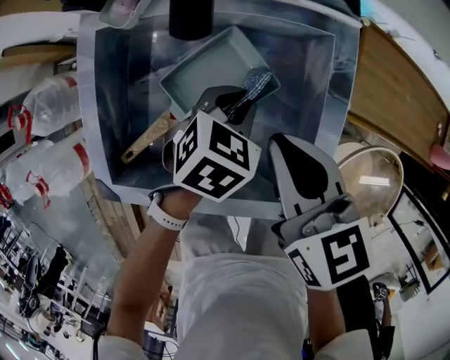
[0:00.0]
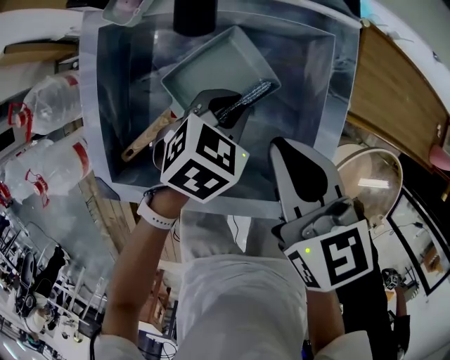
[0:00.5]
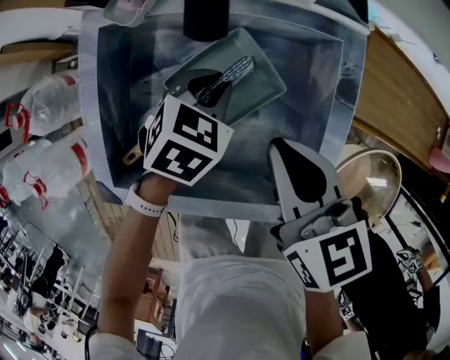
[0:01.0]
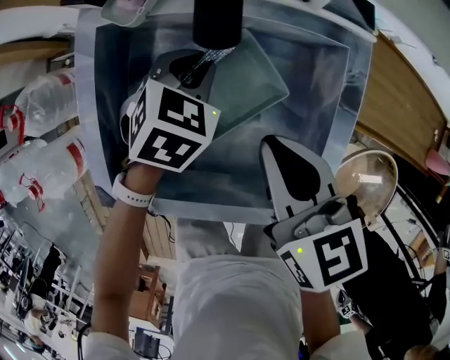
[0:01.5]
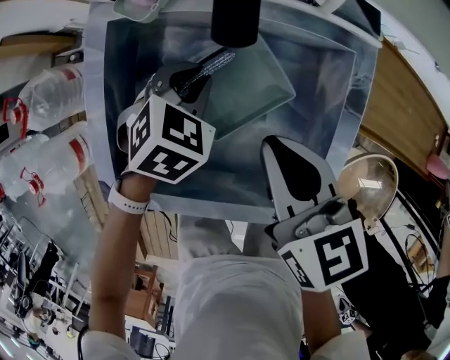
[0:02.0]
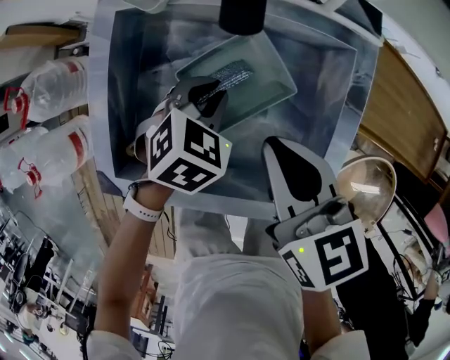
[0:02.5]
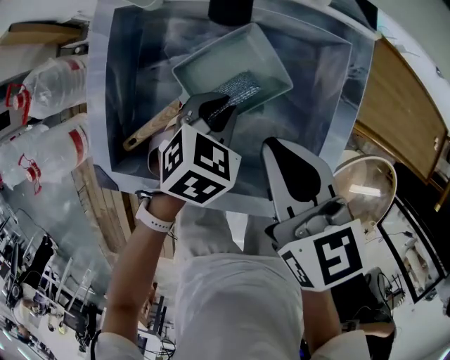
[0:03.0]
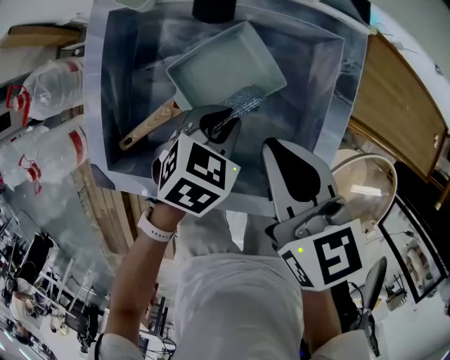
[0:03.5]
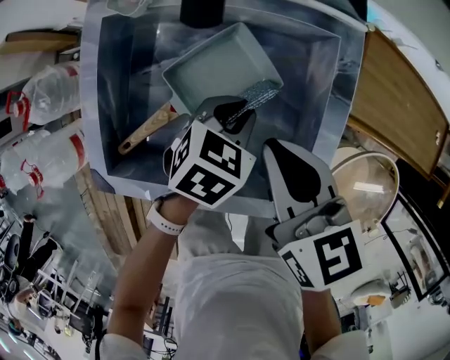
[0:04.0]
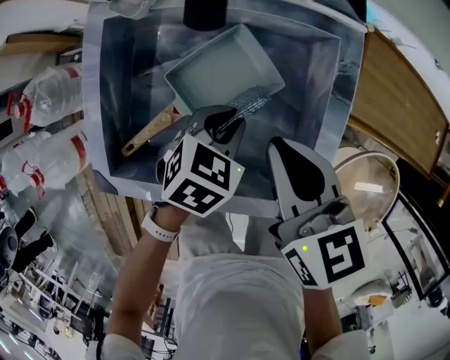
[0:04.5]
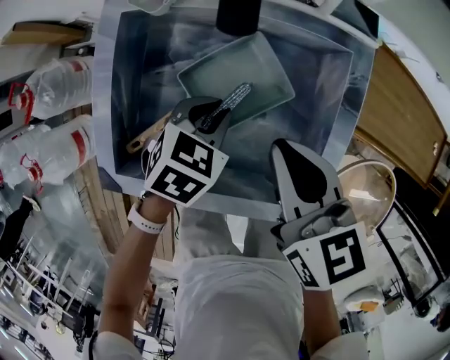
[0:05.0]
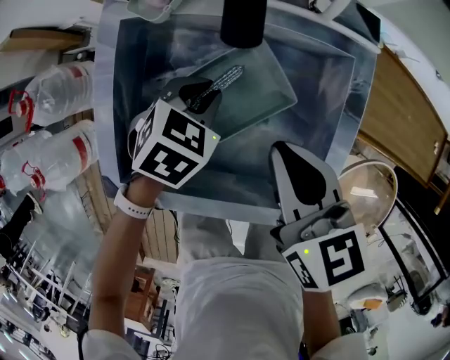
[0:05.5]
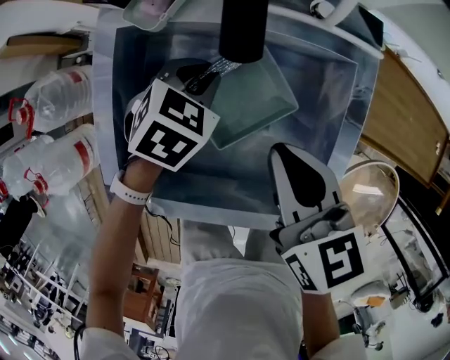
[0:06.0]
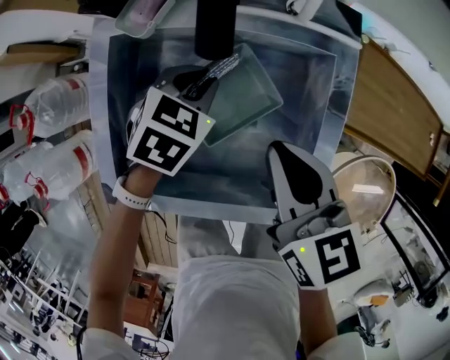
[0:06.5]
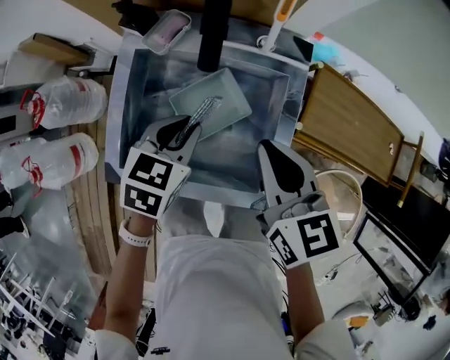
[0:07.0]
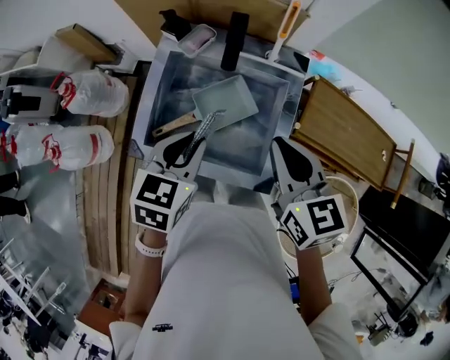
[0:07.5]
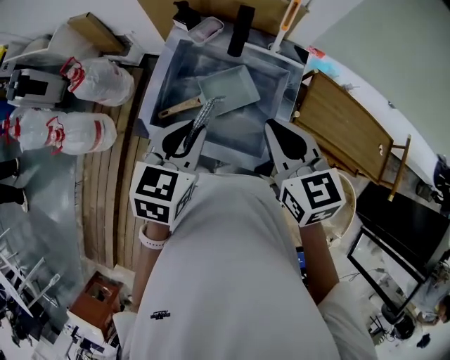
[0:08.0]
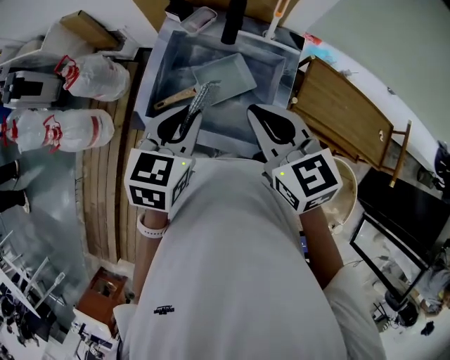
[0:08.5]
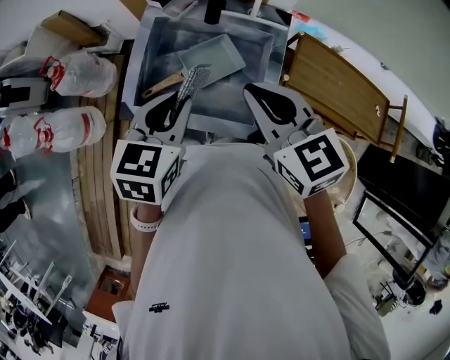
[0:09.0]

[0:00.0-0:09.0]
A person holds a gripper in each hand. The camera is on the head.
0:00.0 to 0:02.0: The left gripper heads to the left, covering about 10 cm.
0:02.0 to 0:04.5: The left gripper travels to the right and backward by approximately 15 cm.
0:04.5 to 0:07.0: The left gripper is displaced upward and to the left by approximately 15 cm, while the right gripper shifts about 10 cm upward.
0:07.0 to 0:09.0: The grippers both shift upward and backward by roughly 20 cm. The right gripper swivels roughly 20 degrees.

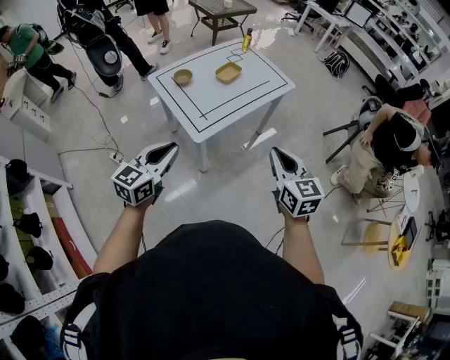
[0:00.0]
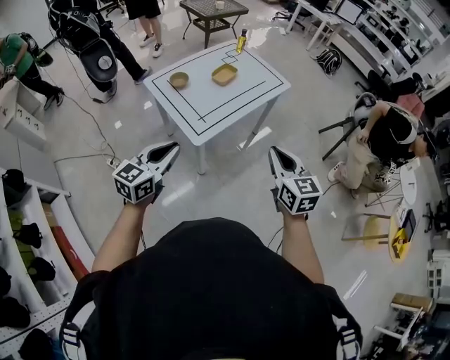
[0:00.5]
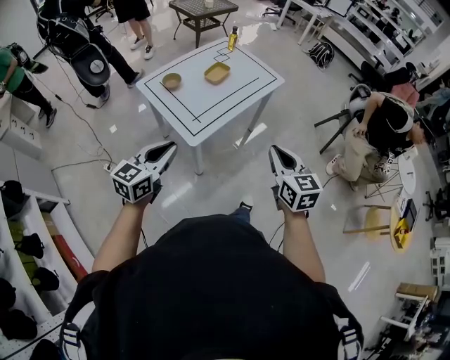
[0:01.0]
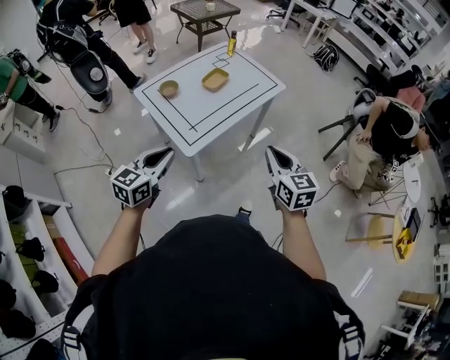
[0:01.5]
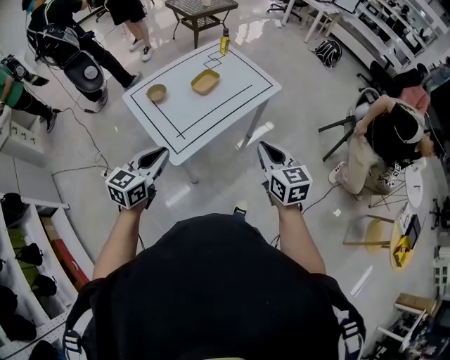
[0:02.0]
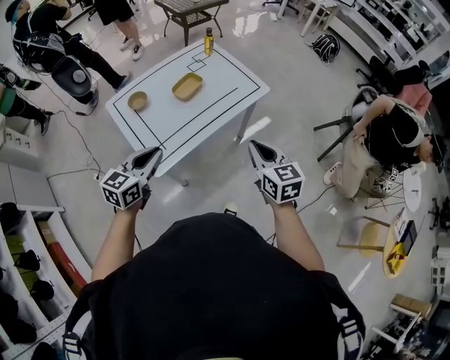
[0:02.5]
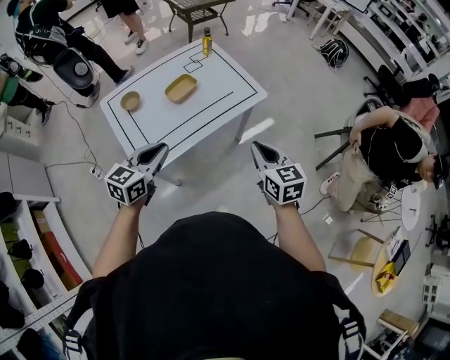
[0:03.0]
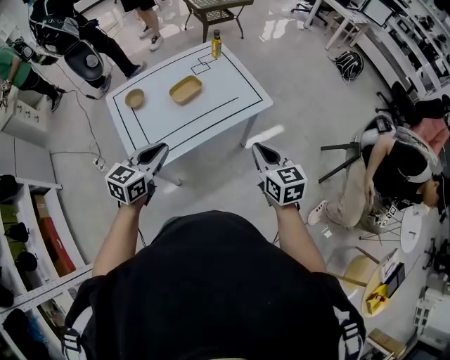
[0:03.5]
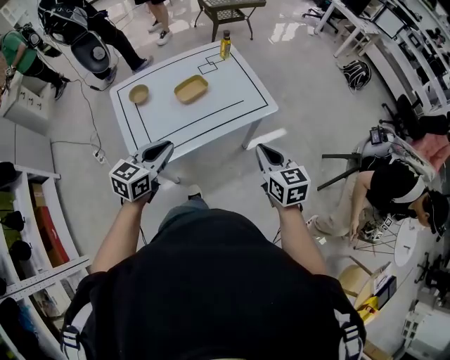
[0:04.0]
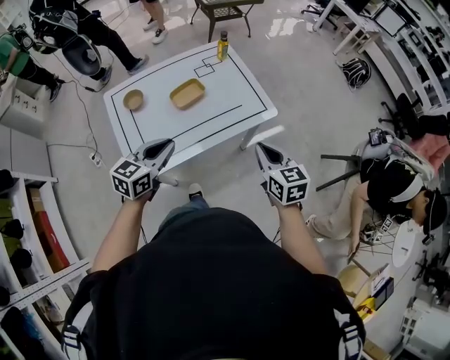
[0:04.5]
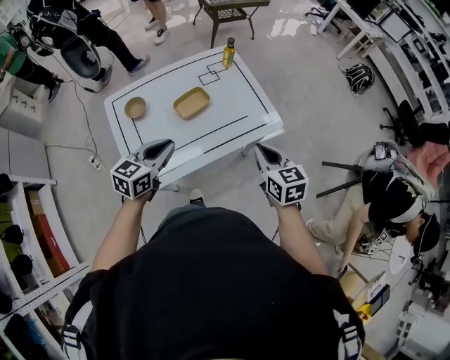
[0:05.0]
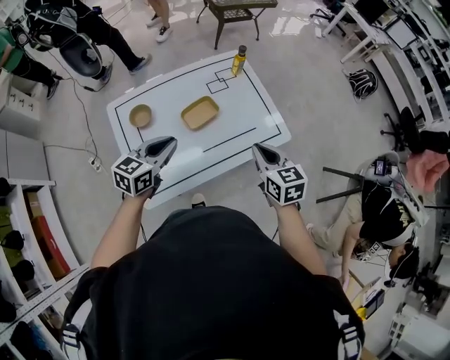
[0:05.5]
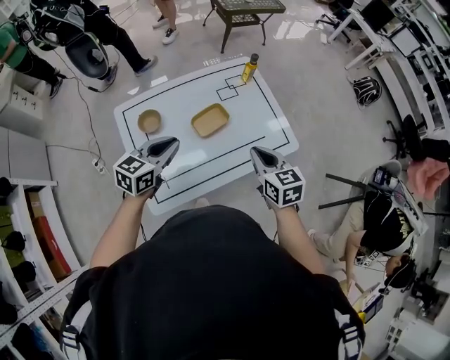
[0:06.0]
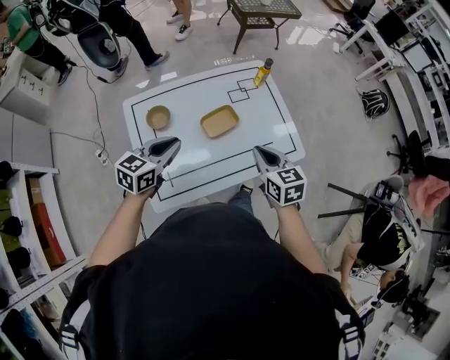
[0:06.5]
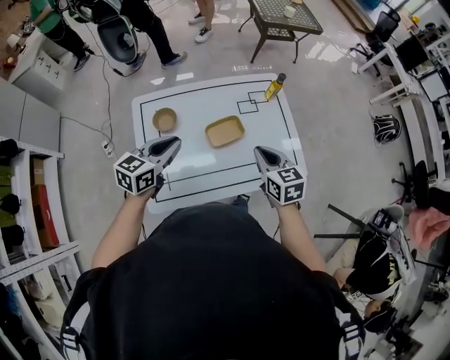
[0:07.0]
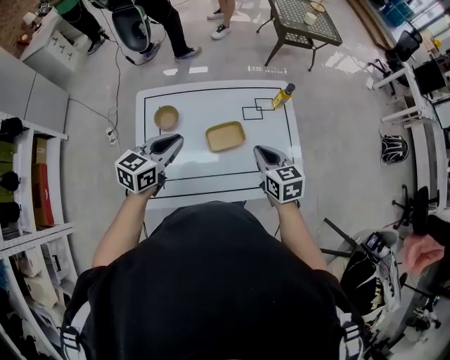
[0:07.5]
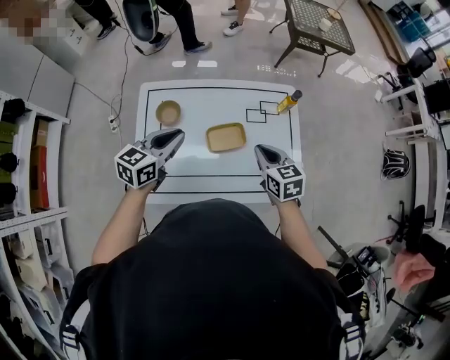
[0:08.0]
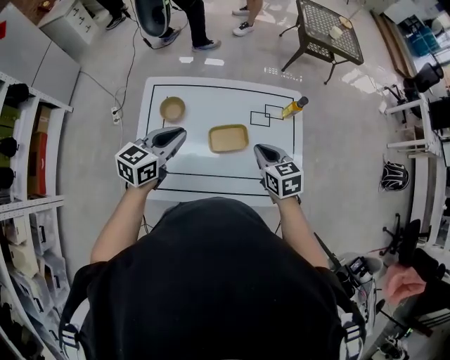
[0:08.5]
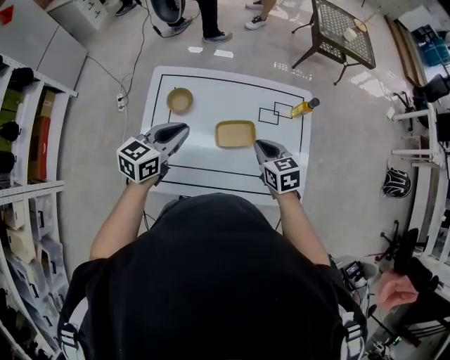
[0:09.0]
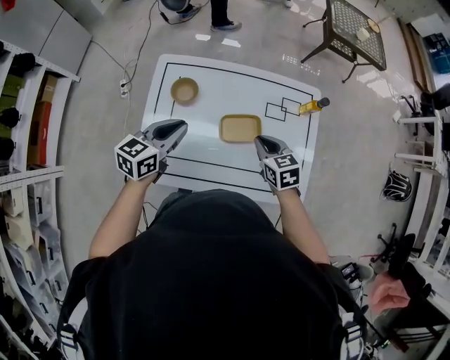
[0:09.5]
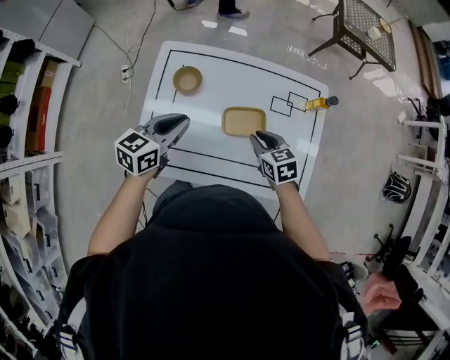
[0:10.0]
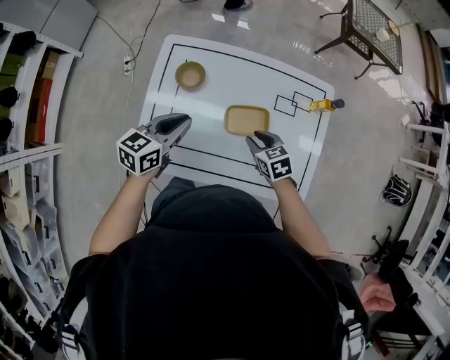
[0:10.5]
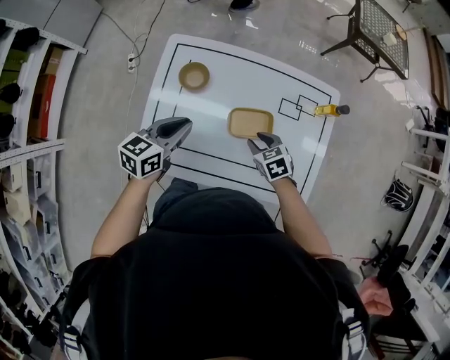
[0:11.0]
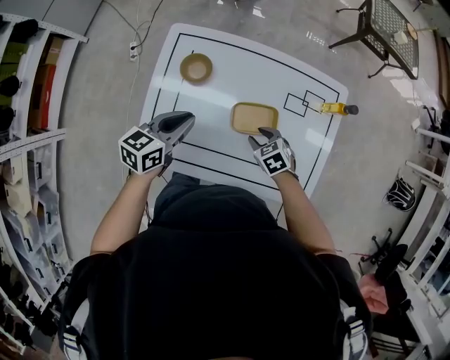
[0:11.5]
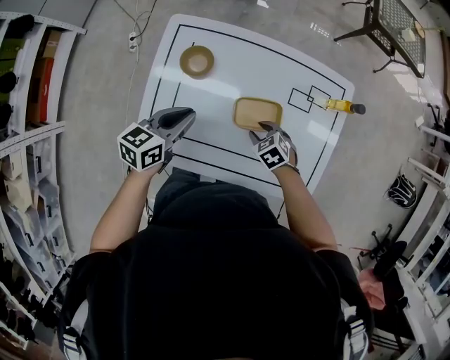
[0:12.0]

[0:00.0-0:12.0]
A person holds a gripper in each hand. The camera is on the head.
0:00.0 to 0:02.0: Both grippers move forward, approximately 15 cm.
0:02.0 to 0:04.0: The left gripper heads to the right and forward, covering roughly 25 cm. Meanwhile the right gripper travels forward and to the right by some 25 cm.
0:04.0 to 0:06.0: The two grippers go approximately 25 cm forward and to the left.
0:06.0 to 0:08.0: The left gripper is displaced forward by some 5 cm, and swivels some 20 degrees. The right gripper shifts some 15 cm forward, and changes its angle by about 20 degrees.
0:08.0 to 0:10.0: The left gripper is displaced downward by approximately 5 cm. Meanwhile the right gripper travels downward and to the left by approximately 10 cm.
0:10.0 to 0:12.0: The right gripper moves downward, approximately 15 cm, and swivels approximately 30 degrees, while the left gripper shifts approximately 5 cm downward.

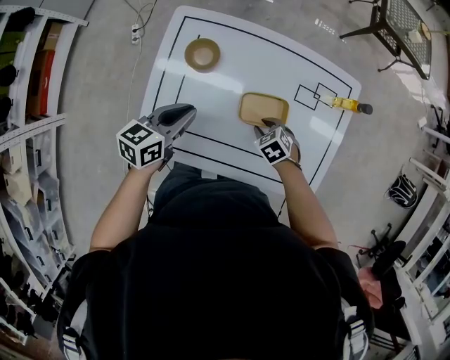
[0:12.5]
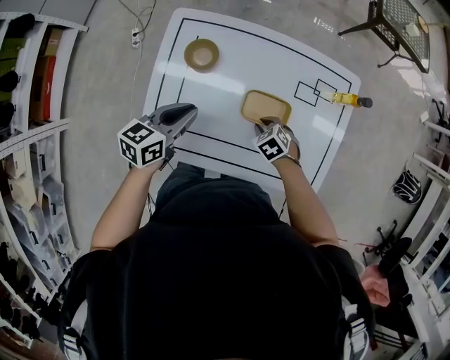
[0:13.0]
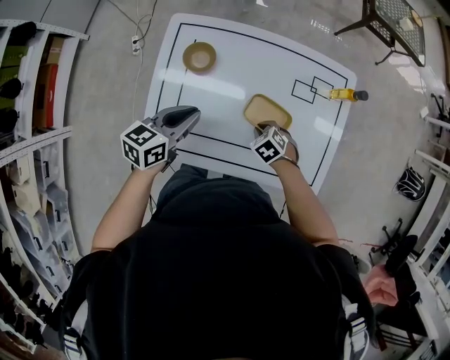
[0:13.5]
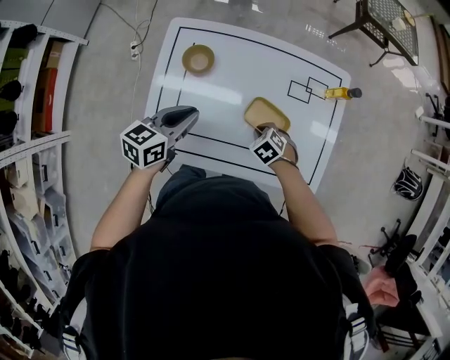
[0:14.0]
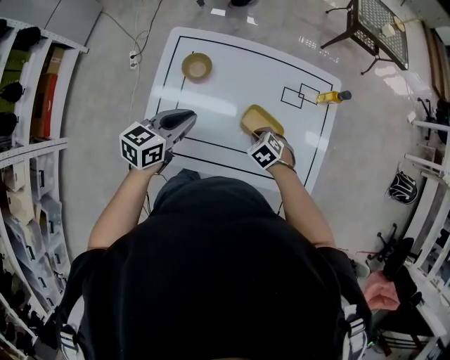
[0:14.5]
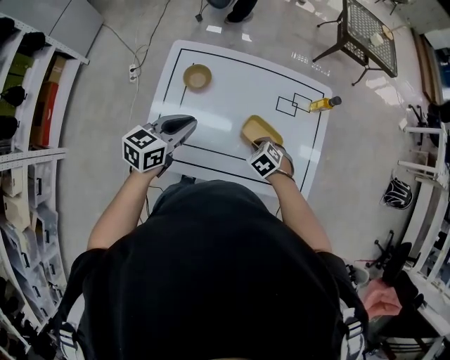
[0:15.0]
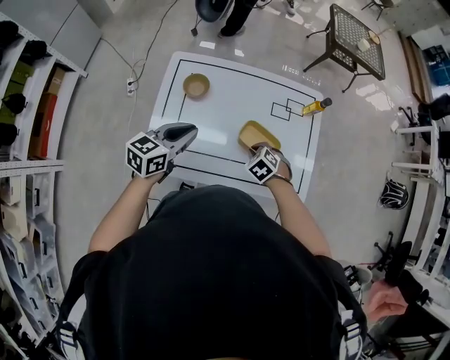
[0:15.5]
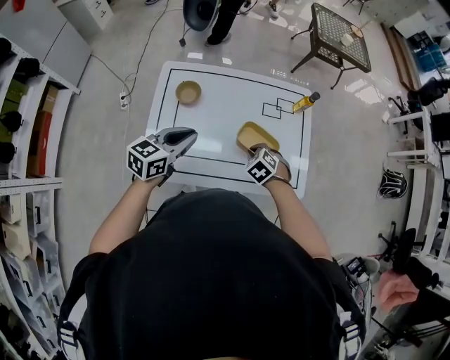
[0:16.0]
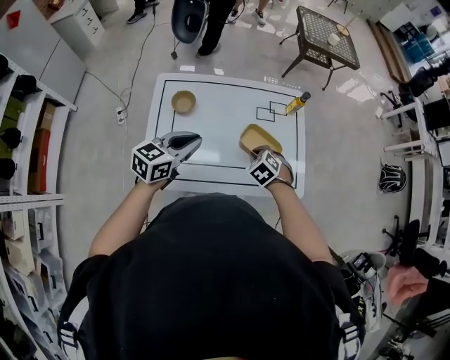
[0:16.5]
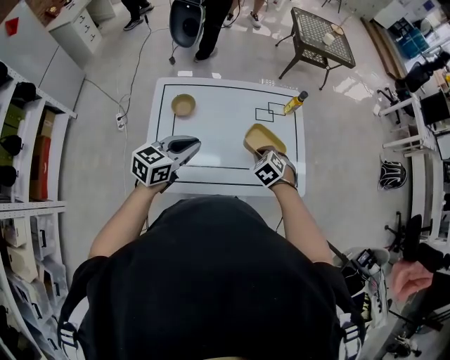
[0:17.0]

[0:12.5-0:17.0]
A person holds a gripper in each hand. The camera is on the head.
0:12.5 to 0:14.5: The left gripper is displaced upward by approximately 5 cm, while the right gripper closes its fingers.
0:14.5 to 0:17.0: The left gripper is displaced upward by roughly 5 cm; the right gripper moves upward, about 10 cm.

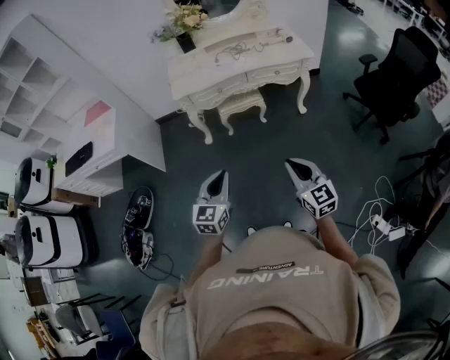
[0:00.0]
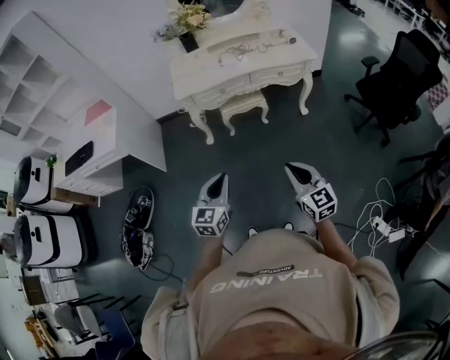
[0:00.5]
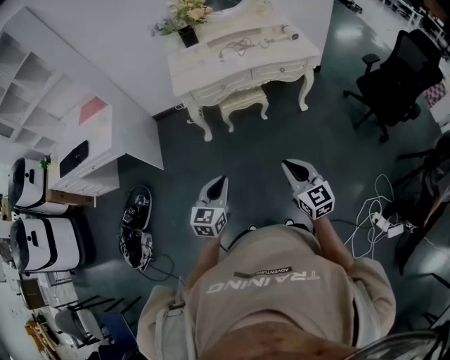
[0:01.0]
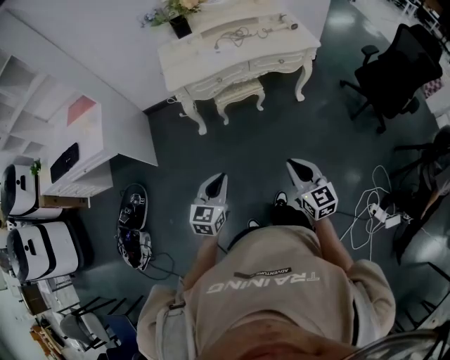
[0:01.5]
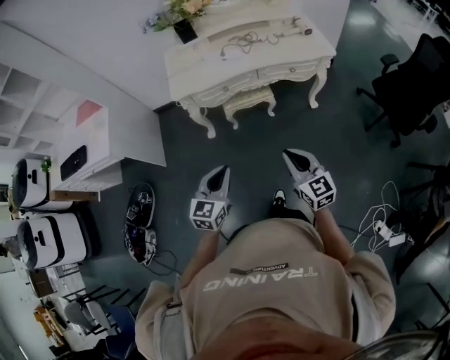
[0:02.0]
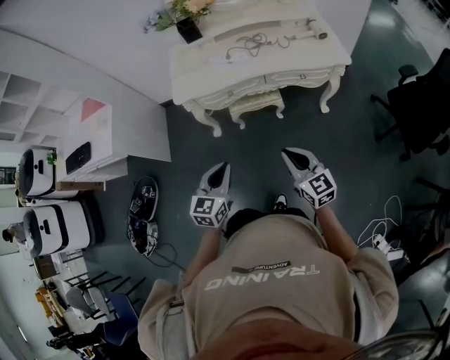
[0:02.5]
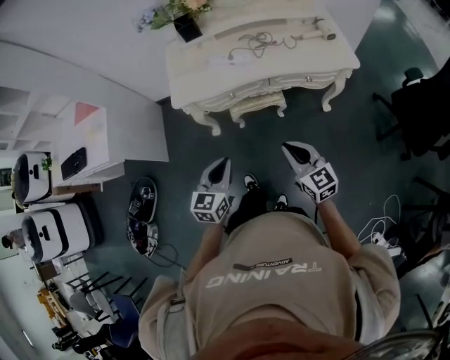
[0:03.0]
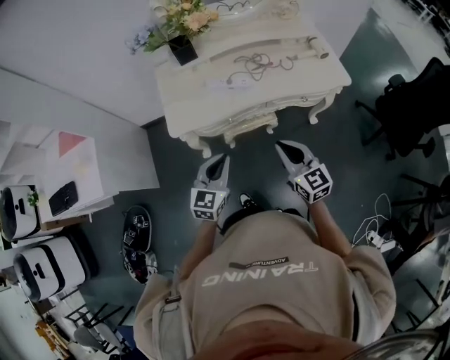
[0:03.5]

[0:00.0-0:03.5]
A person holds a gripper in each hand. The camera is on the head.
0:00.0 to 0:02.0: The grippers both shift forward by roughly 20 cm.
0:02.0 to 0:03.5: The two grippers go roughly 30 cm forward.
